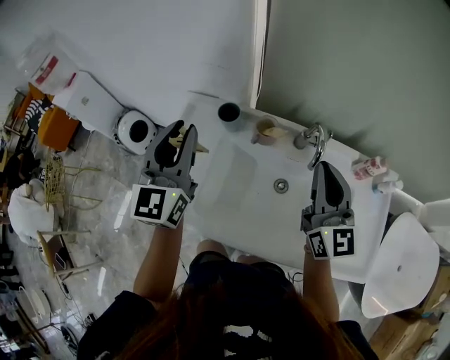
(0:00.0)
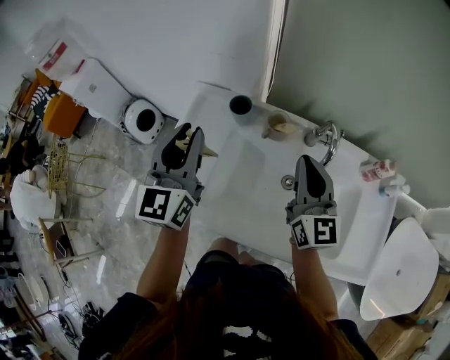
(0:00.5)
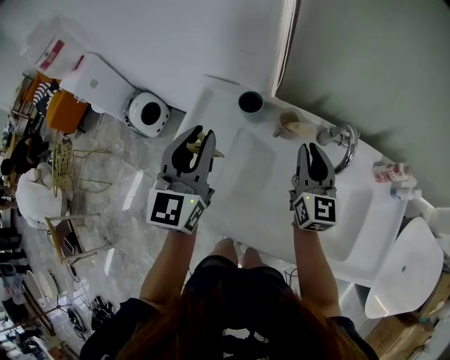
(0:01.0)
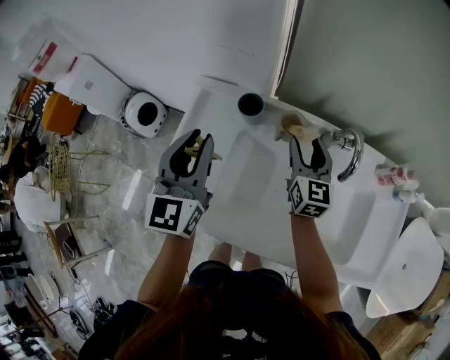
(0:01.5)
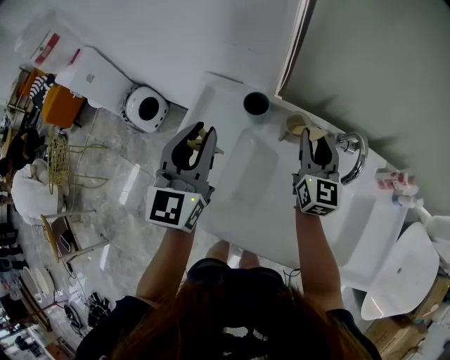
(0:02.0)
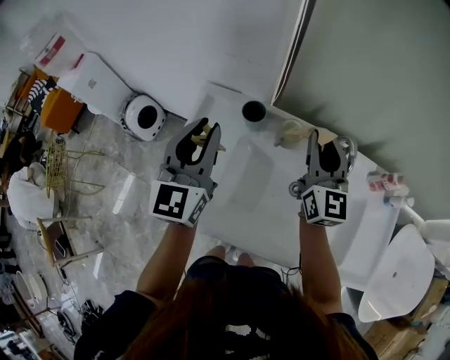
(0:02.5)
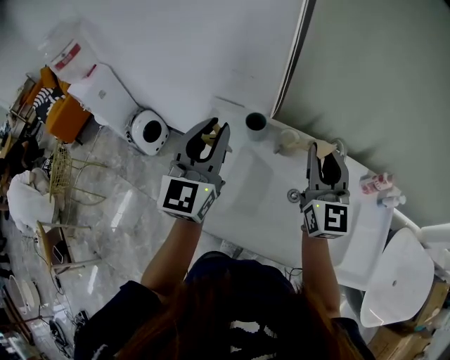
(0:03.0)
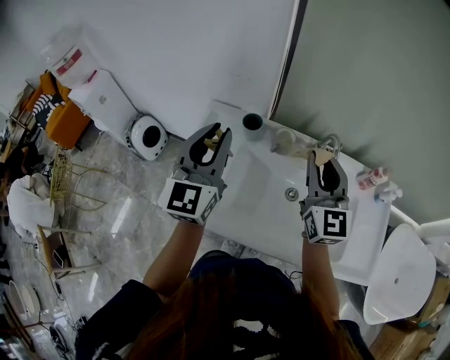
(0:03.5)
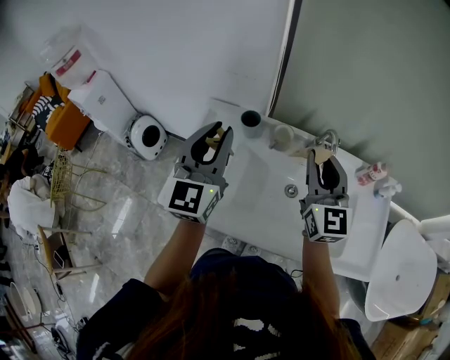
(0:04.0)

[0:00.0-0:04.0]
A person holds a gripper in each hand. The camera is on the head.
0:00.0 to 0:02.0: The left gripper travels downward by some 5 cm; the right gripper moves forward, downward and to the left, about 20 cm, and opens its fingers.
0:02.0 to 0:04.0: The right gripper goes some 25 cm upward and backward; the left gripper heads upward and backward, covering approximately 15 cm.

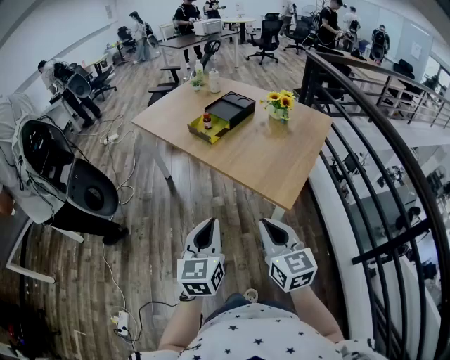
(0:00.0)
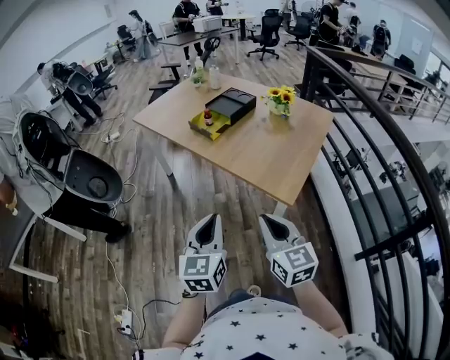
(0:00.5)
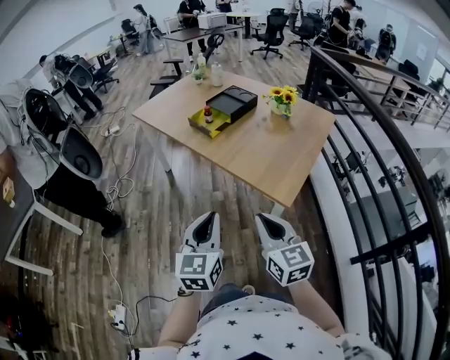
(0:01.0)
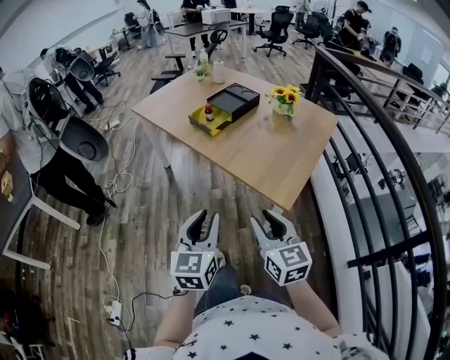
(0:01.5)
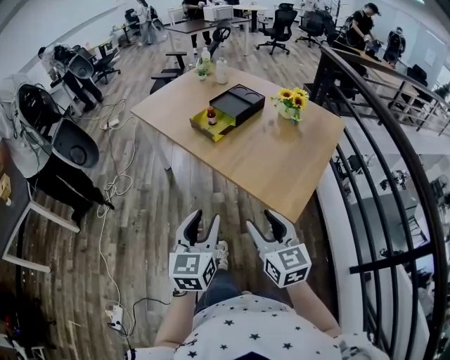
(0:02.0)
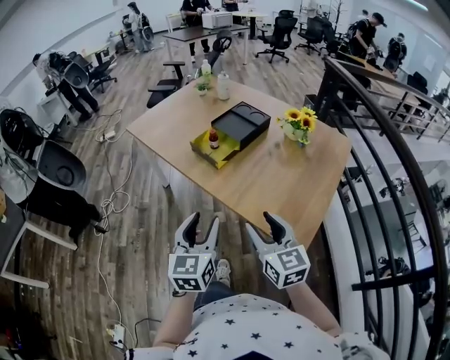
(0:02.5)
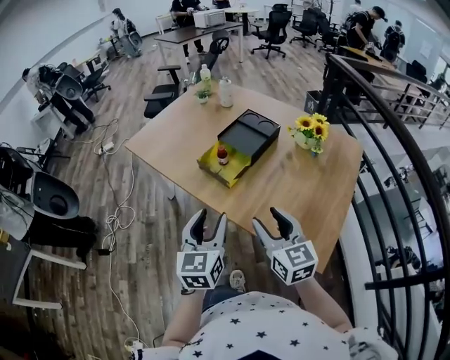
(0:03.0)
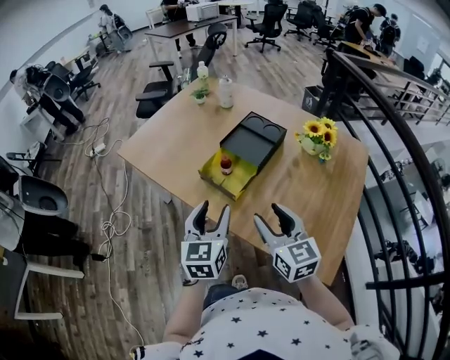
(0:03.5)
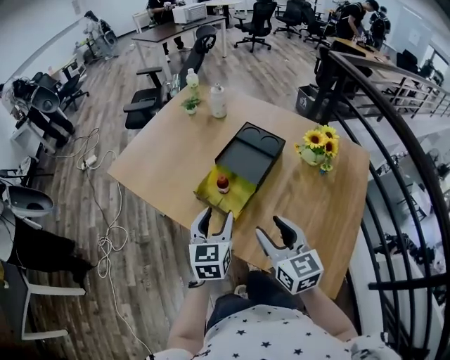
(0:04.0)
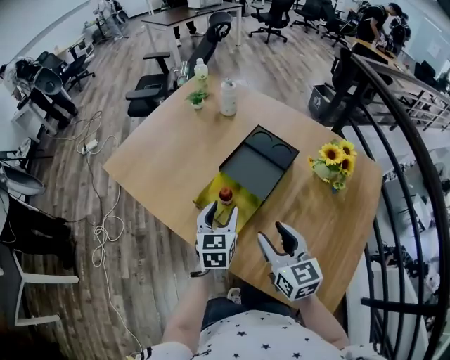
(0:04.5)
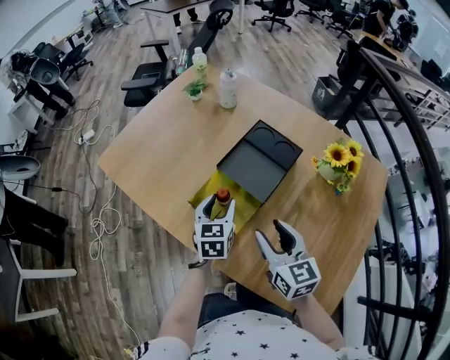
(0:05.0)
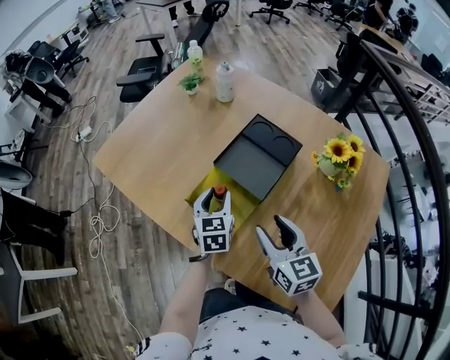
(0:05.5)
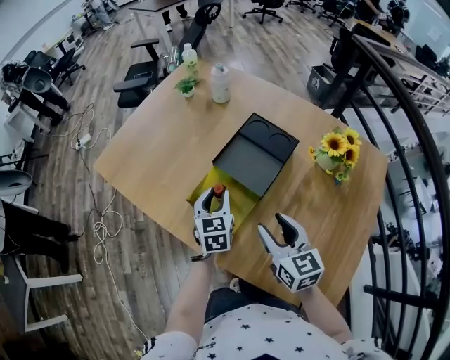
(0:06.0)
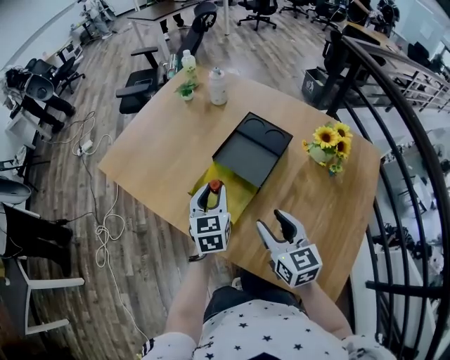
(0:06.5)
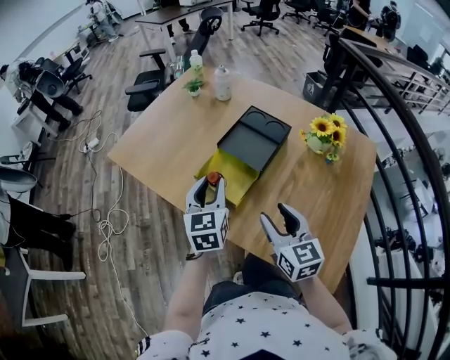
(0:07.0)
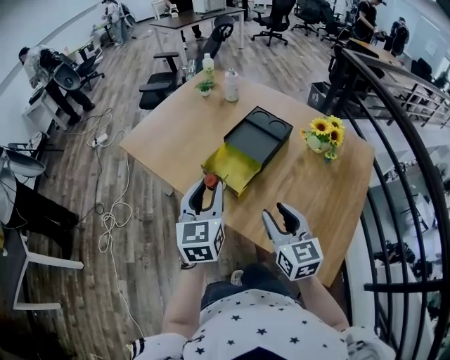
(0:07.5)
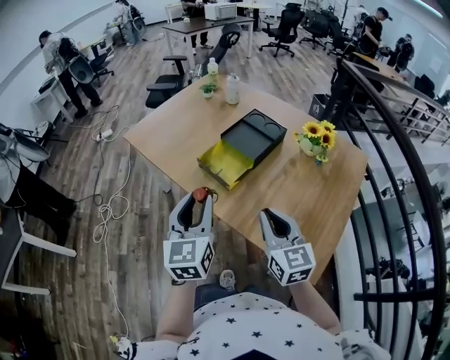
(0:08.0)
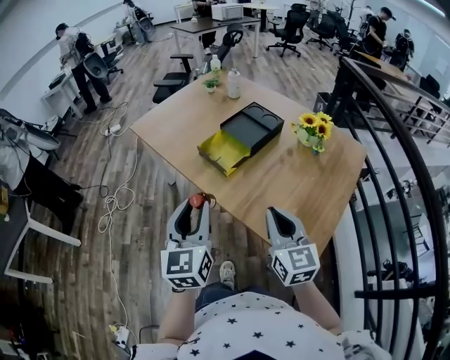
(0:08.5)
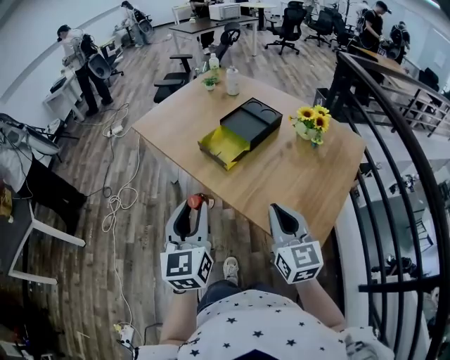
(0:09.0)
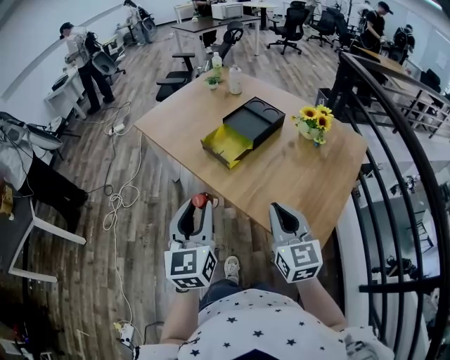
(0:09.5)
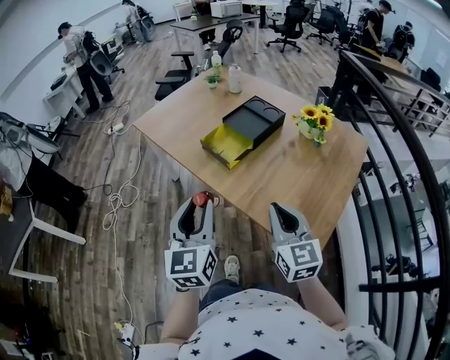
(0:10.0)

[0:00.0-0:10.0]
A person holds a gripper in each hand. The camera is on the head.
0:00.0 to 0:02.0: Both grippers move forward, some 10 cm. The left gripper opens its fingers; the right gripper opens up.
0:02.0 to 0:04.0: The grippers both shift forward by about 40 cm.
0:04.0 to 0:06.0: The grippers both shift forward and downward by roughly 15 cm.
0:06.0 to 0:08.0: The left gripper travels backward and upward by approximately 35 cm, and swivels some 20 degrees. The right gripper shifts roughly 20 cm backward and upward, and closes.
0:08.0 to 0:10.0: The two grippers go some 10 cm backward.

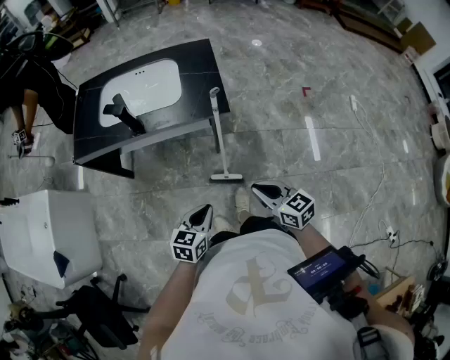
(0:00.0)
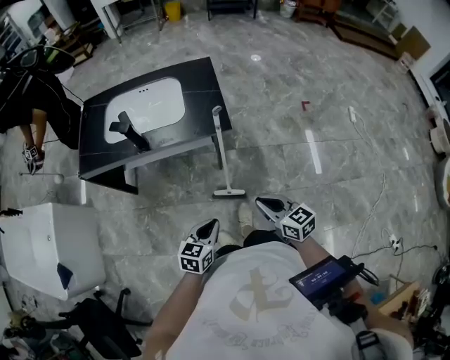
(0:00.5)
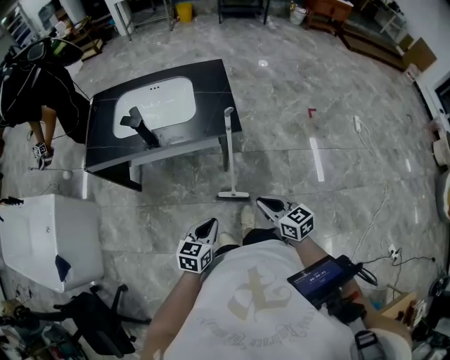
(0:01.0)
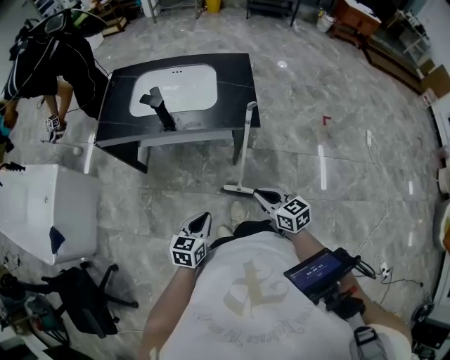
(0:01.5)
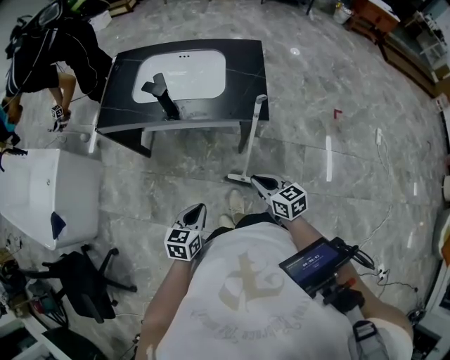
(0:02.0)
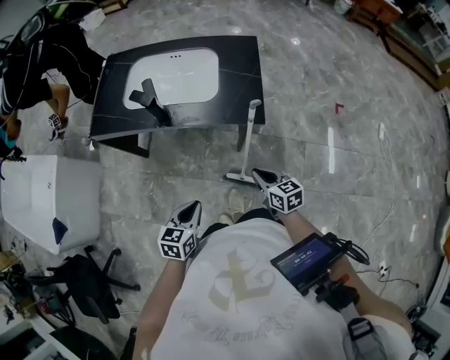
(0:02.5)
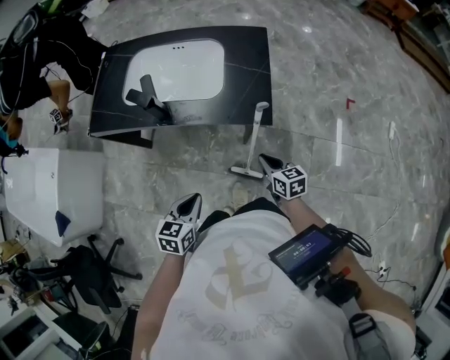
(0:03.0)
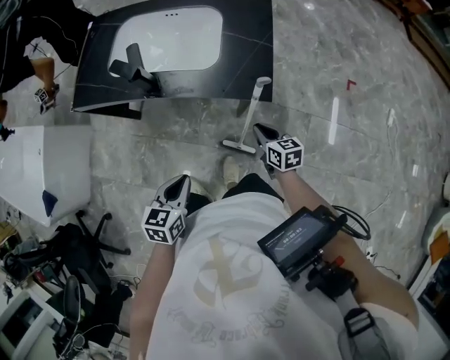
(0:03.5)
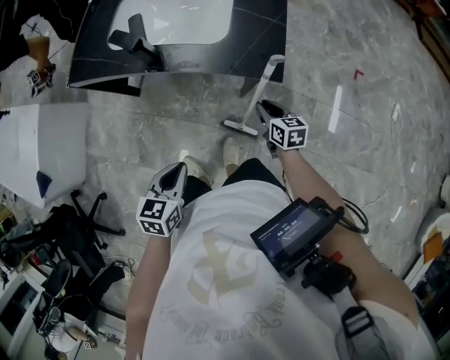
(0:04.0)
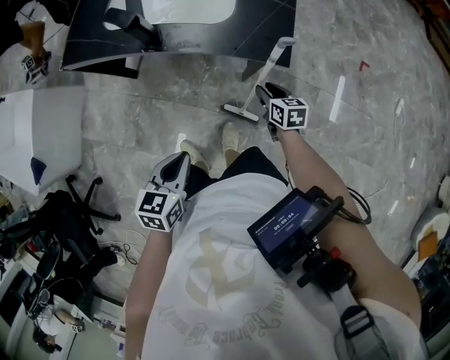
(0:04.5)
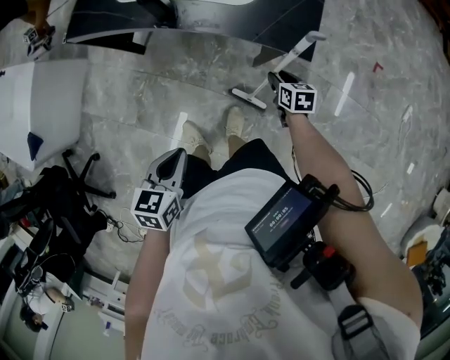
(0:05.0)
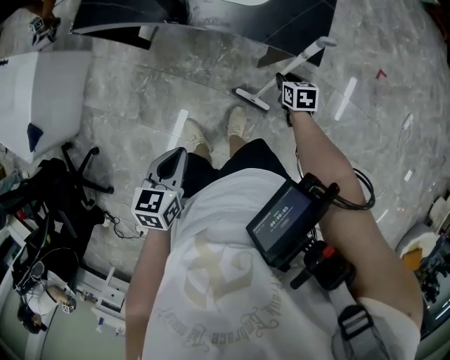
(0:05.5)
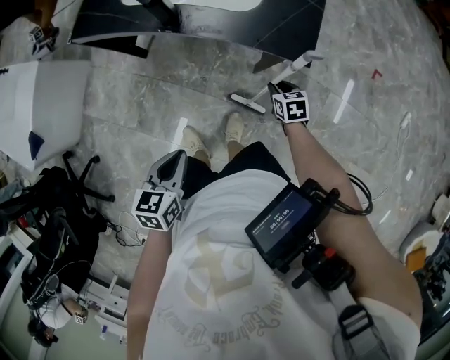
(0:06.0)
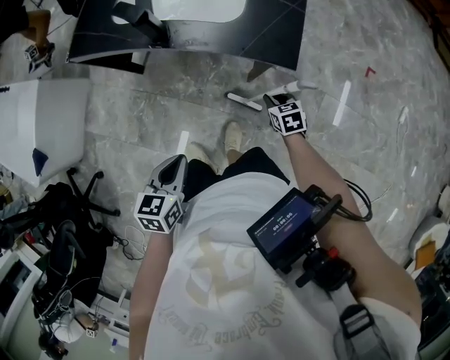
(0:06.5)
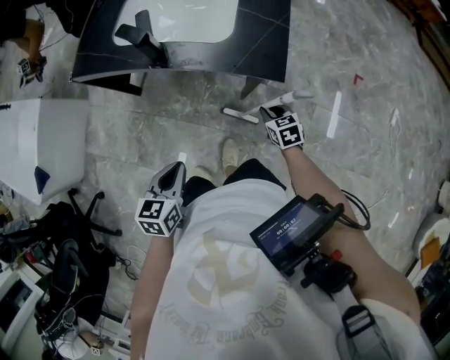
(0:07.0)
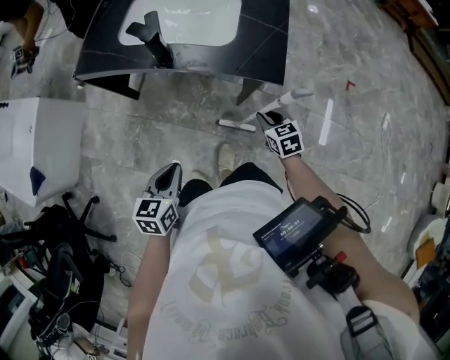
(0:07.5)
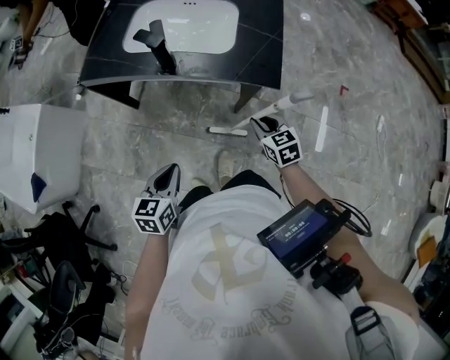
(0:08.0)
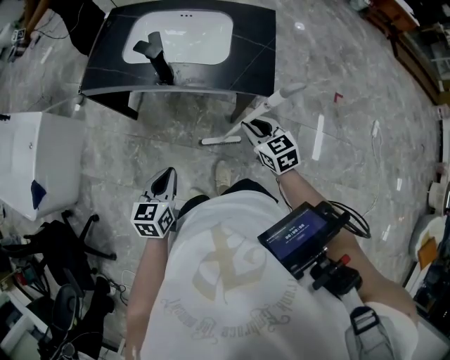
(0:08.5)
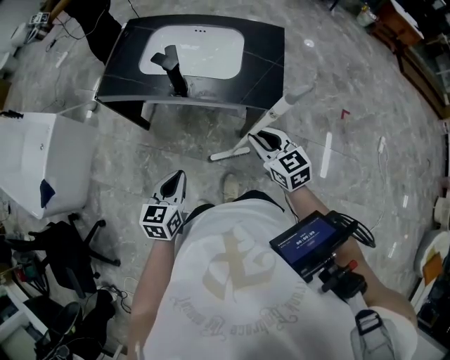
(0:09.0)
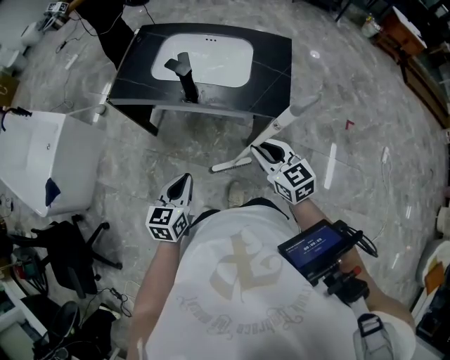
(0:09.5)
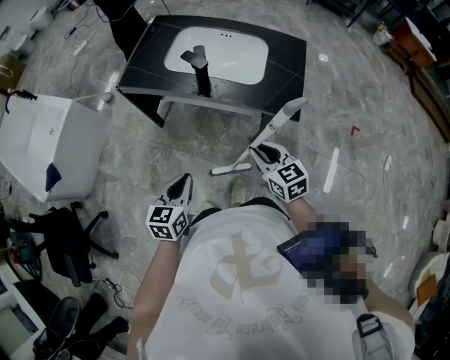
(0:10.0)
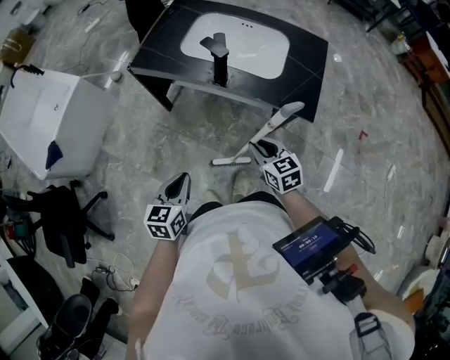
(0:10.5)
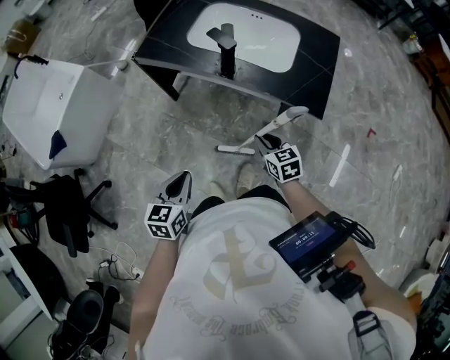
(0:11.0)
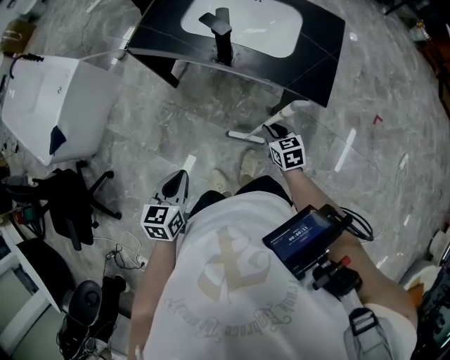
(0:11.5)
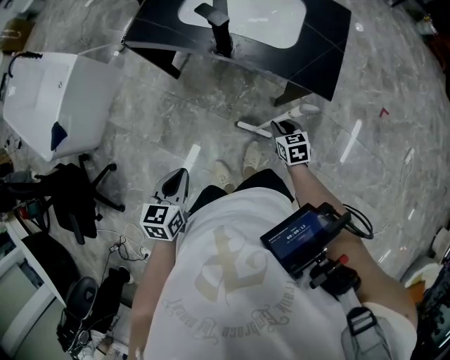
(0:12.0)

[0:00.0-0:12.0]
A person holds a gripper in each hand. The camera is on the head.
0:00.0 to 0:02.0: The left gripper goes approximately 10 cm to the left, while the right gripper goes some 10 cm forward and to the left.
0:02.0 to 0:04.0: The right gripper shifts approximately 20 cm forward, downward and to the right; the left gripper moves forward, about 5 cm.
0:04.0 to 0:06.0: The right gripper moves downward, approximately 10 cm, and changes its angle by roughly 20 degrees.
0:06.0 to 0:08.0: The right gripper is displaced upward by approximately 15 cm.
0:08.0 to 0:10.0: The left gripper shifts by approximately 5 cm, while the right gripper travels upward and to the left by about 15 cm.
0:10.0 to 0:12.0: The right gripper moves downward, approximately 20 cm, and swivels about 20 degrees. The left gripper moves about 5 cm.

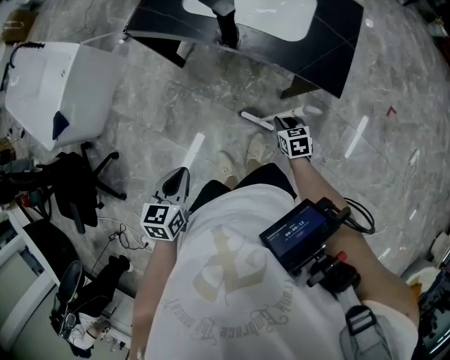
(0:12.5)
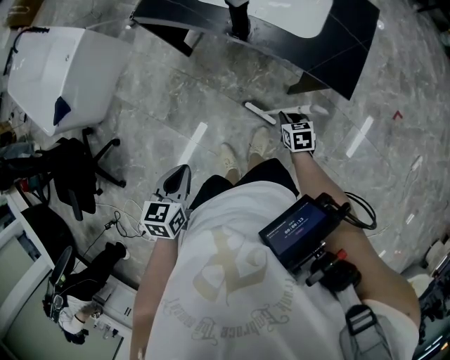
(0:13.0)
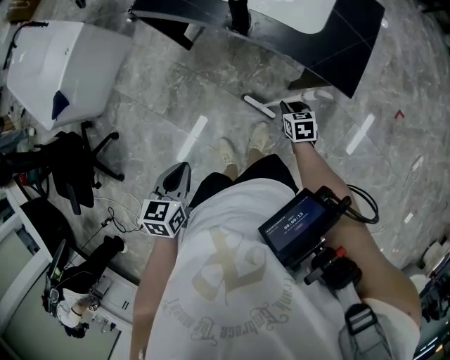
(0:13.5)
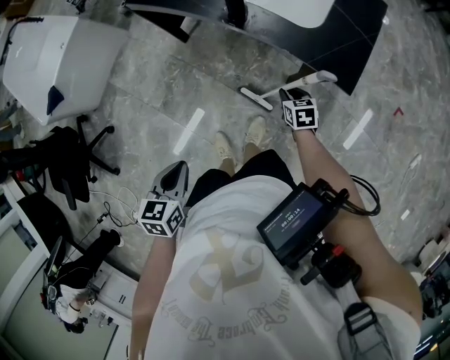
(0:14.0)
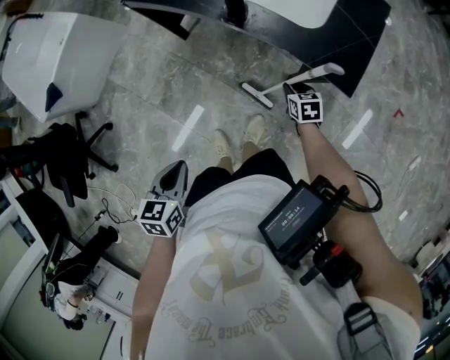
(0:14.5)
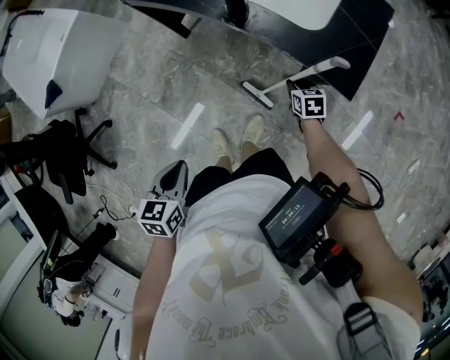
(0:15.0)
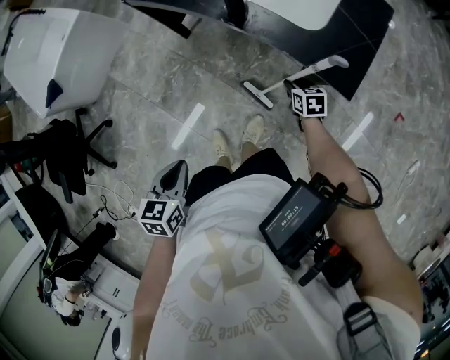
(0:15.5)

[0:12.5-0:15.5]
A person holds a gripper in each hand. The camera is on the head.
0:12.5 to 0:14.0: The right gripper heads forward, covering roughly 5 cm.
0:14.0 to 0:15.5: The grippers stay close to where they were, moving slightly.
